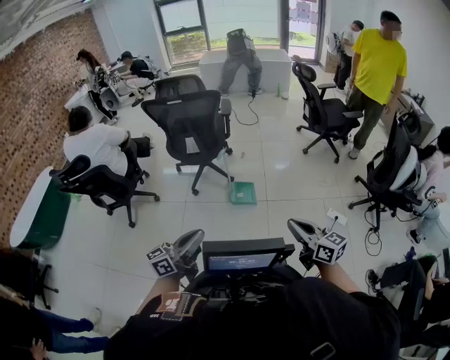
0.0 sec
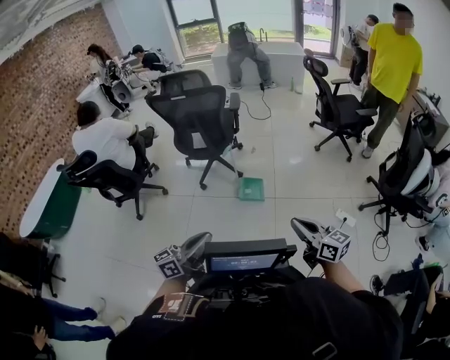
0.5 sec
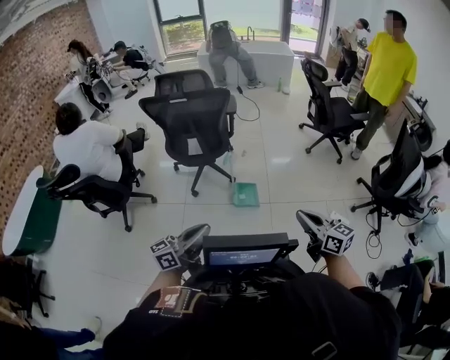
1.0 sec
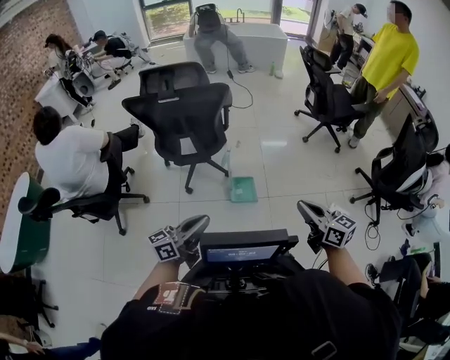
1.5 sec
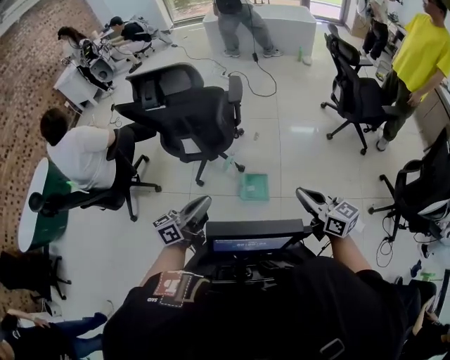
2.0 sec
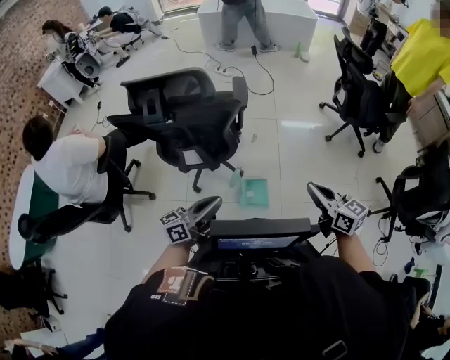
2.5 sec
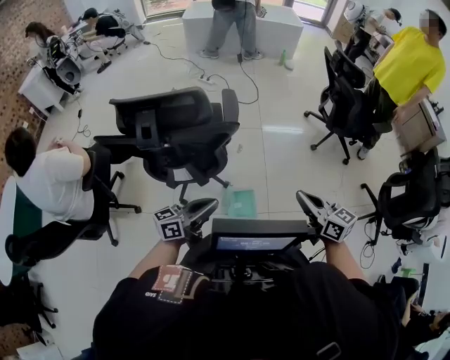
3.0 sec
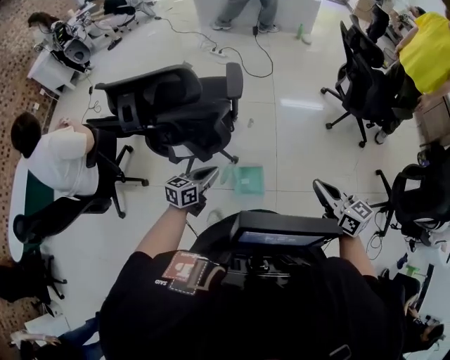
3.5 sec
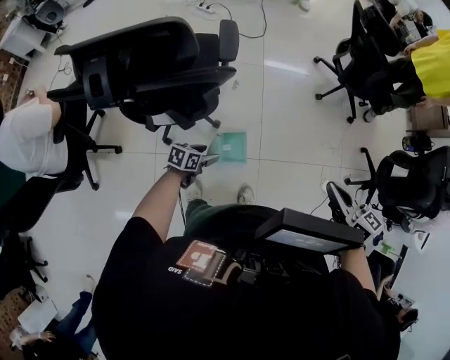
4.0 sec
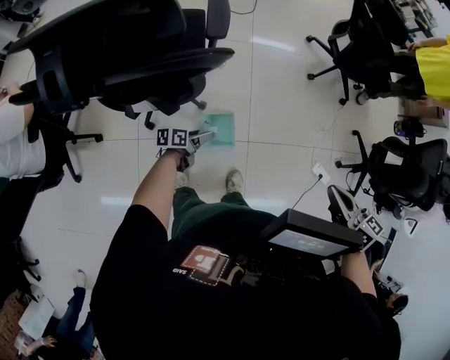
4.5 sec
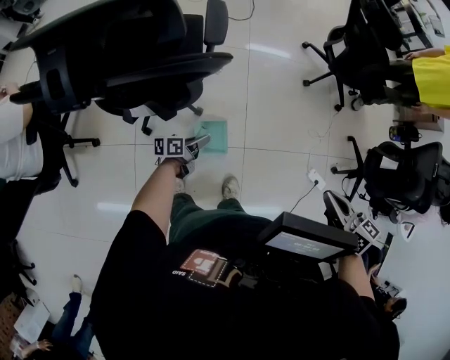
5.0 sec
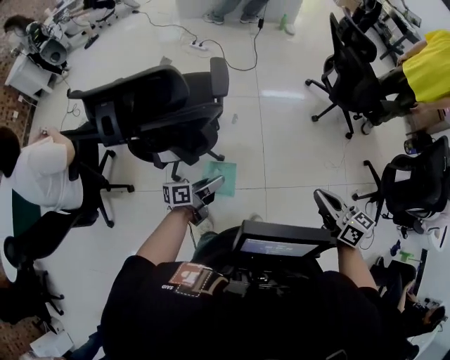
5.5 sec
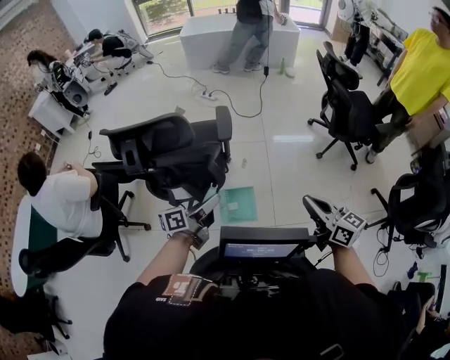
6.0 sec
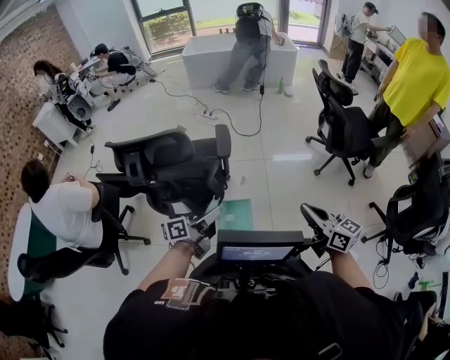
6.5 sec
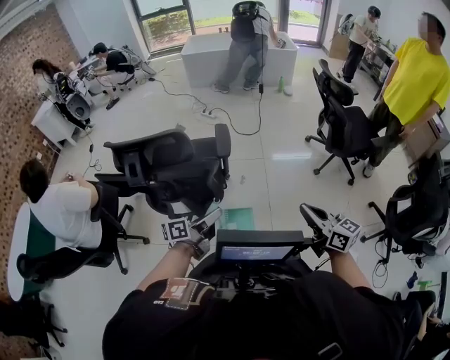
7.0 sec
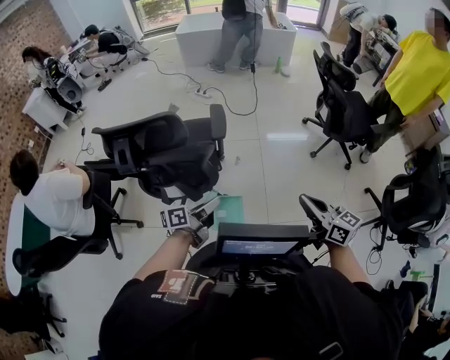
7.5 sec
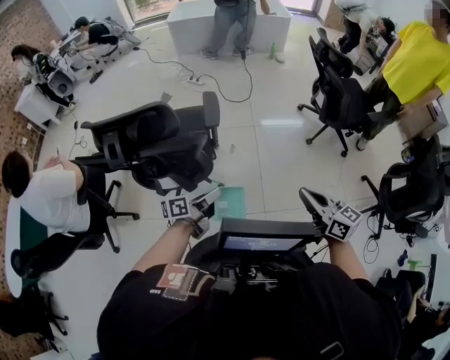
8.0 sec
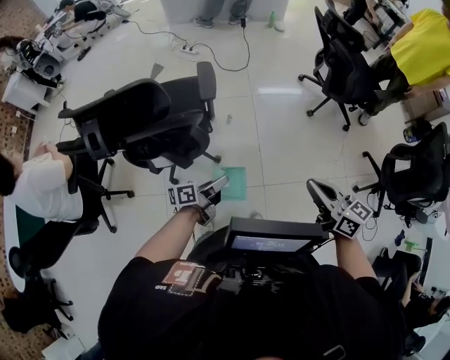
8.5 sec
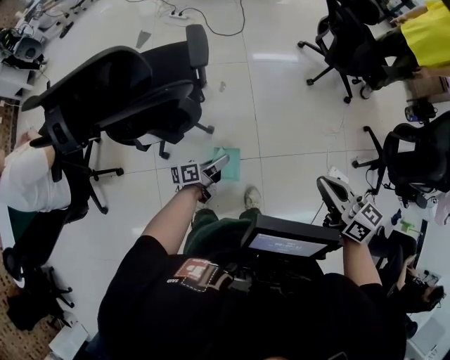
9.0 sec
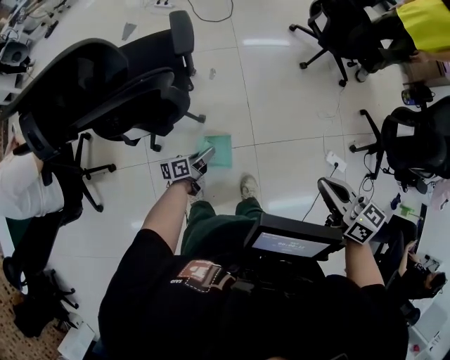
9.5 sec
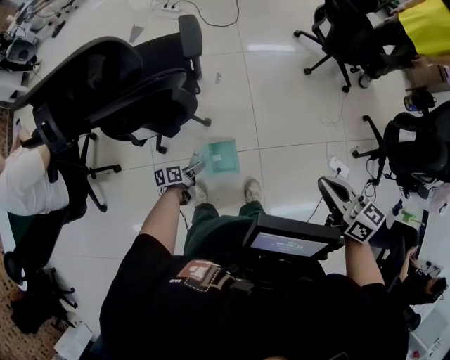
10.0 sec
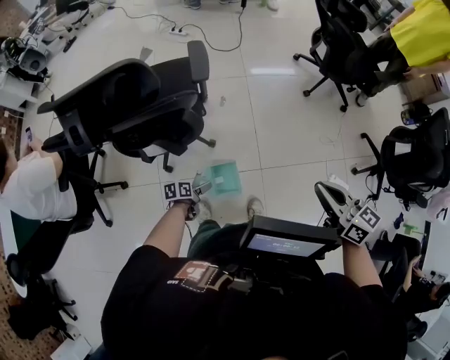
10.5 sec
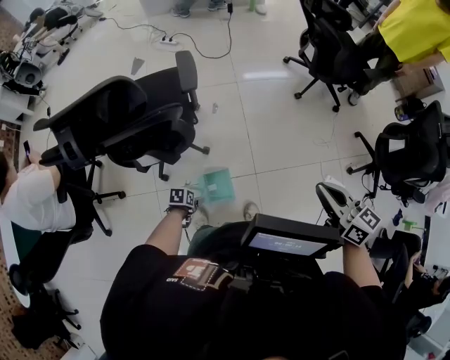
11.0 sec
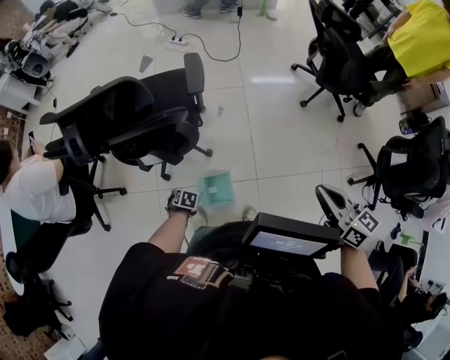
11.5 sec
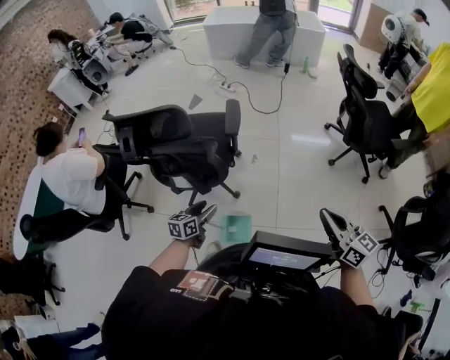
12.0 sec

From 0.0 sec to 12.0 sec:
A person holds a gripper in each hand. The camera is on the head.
From 0.0 sec to 2.0 sec: Both grippers are carried forward, approximately 60 cm.
From 2.0 sec to 4.0 sec: The right gripper goes approximately 30 cm forward, and turns by some 20 degrees, while the left gripper moves downward and forward, roughly 50 cm, points its fingers about 50 degrees further downward, and opens up.
From 4.0 sec to 6.0 sec: The left gripper is displaced upward by about 35 cm, points its fingers approximately 40 degrees further upward, and closes up. Meanwhile the right gripper goes some 10 cm upward.
From 6.0 sec to 8.0 sec: The left gripper shifts approximately 5 cm downward.
From 8.0 sec to 10.0 sec: The right gripper goes some 15 cm downward; the left gripper goes roughly 40 cm downward, and turns by some 30 degrees.
From 10.0 sec to 12.0 sec: The right gripper is displaced upward by some 15 cm. The left gripper is displaced upward by approximately 30 cm, and swivels approximately 40 degrees.

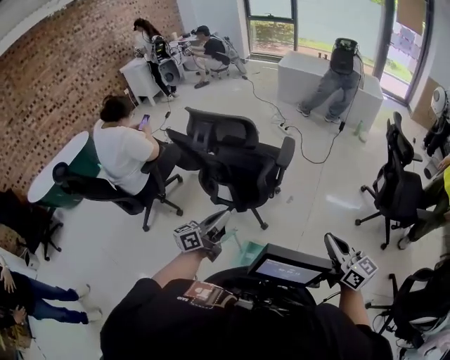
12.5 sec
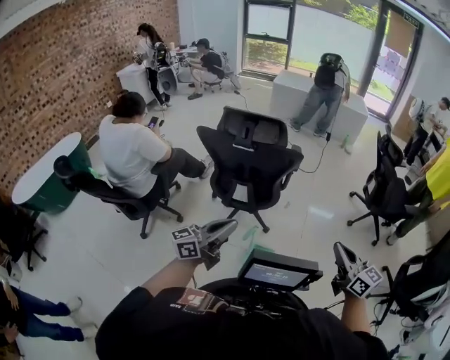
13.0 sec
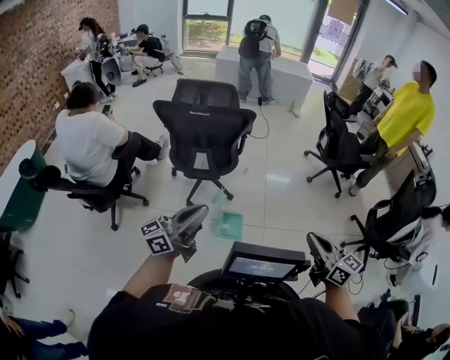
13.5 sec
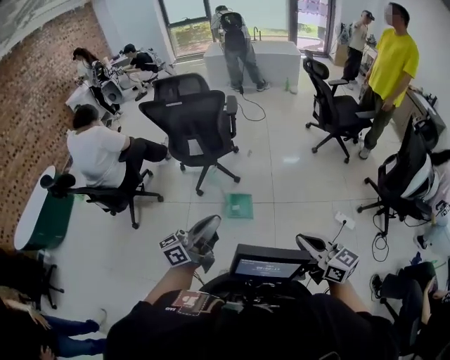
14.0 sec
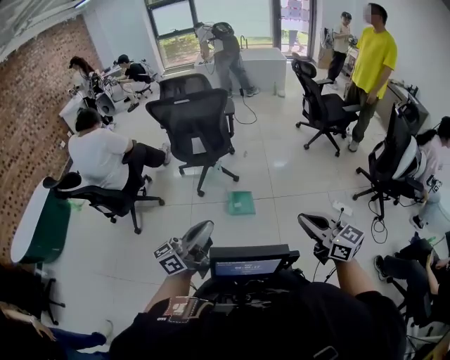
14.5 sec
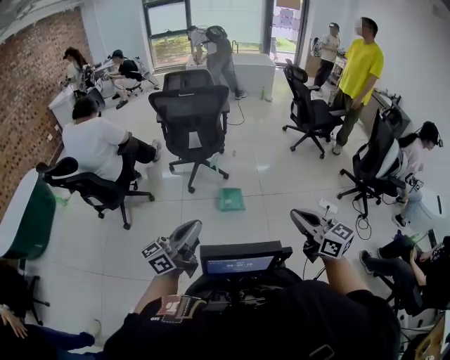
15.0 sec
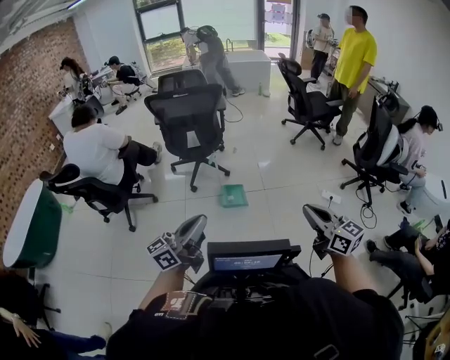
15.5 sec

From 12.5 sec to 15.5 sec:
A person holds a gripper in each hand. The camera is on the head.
From 12.5 sec to 14.0 sec: Both grippers are carried backward, about 70 cm. The left gripper swivels some 20 degrees.
From 14.0 sec to 15.5 sec: The grippers both shift backward and to the left by approximately 35 cm.

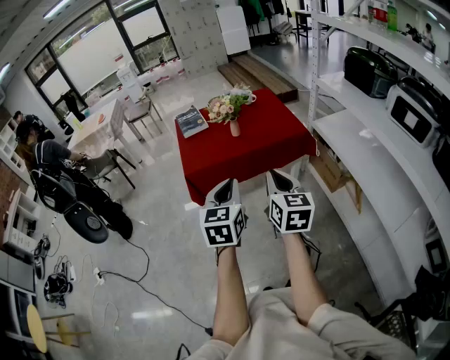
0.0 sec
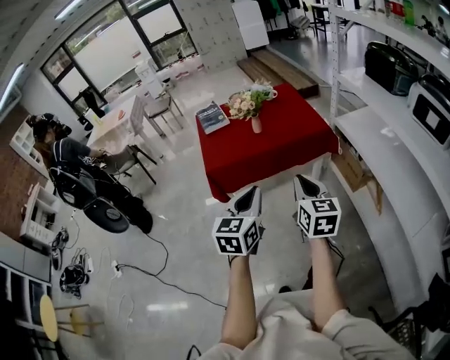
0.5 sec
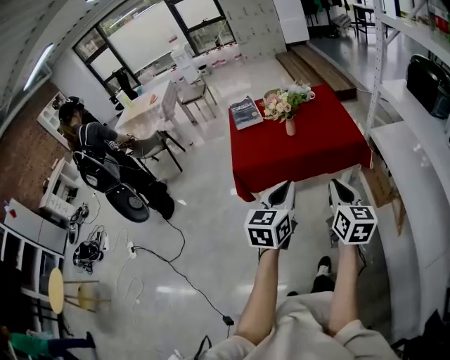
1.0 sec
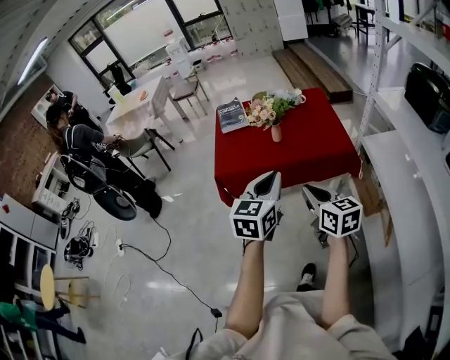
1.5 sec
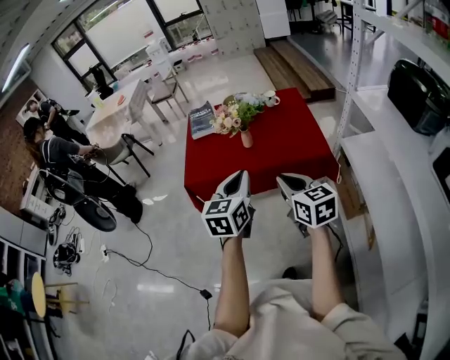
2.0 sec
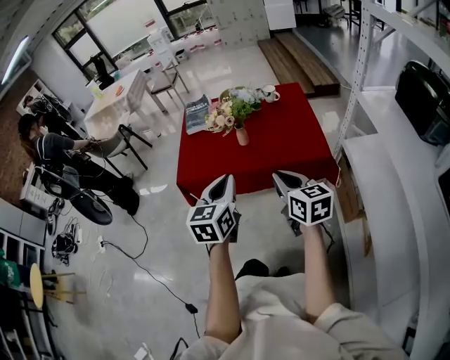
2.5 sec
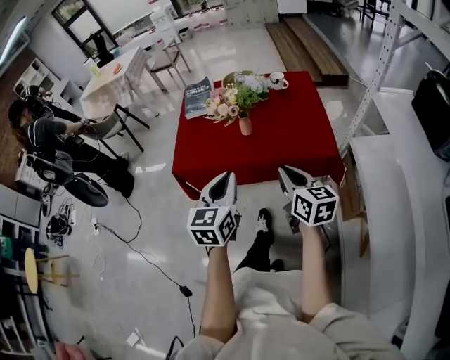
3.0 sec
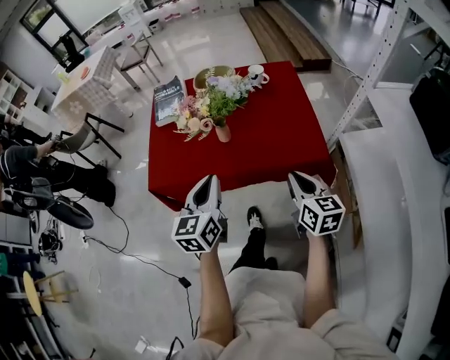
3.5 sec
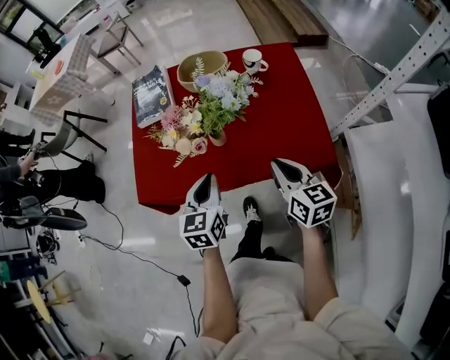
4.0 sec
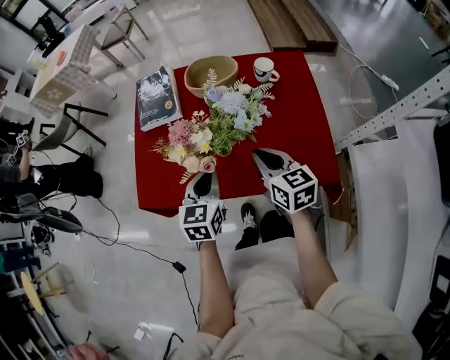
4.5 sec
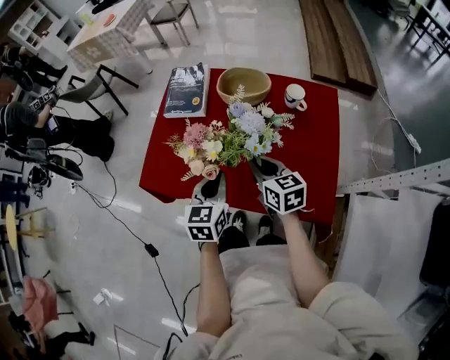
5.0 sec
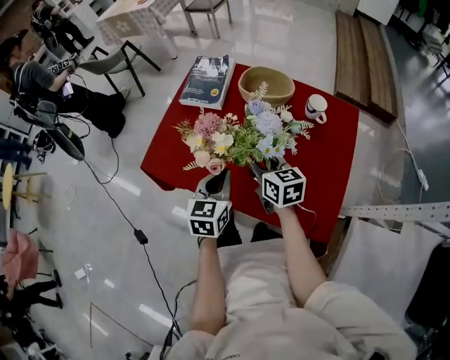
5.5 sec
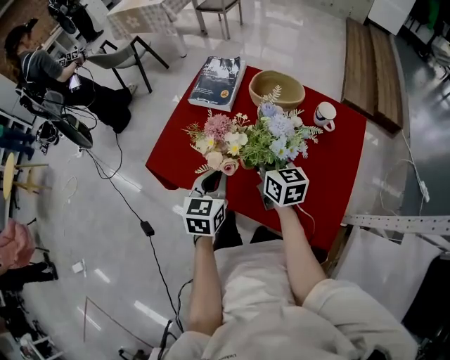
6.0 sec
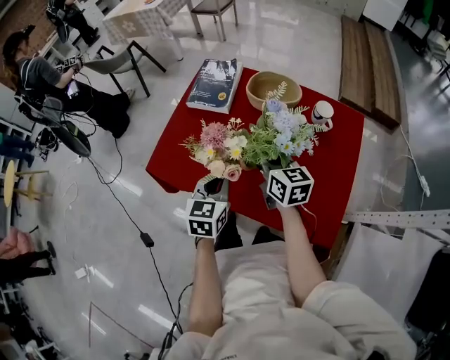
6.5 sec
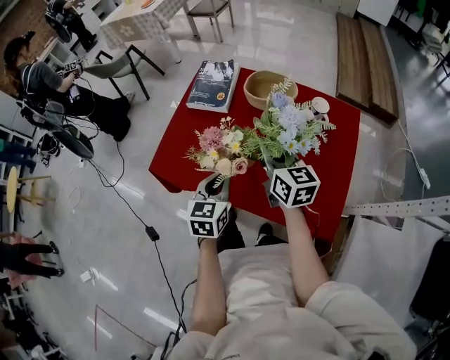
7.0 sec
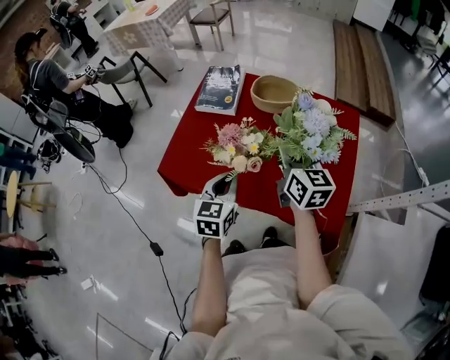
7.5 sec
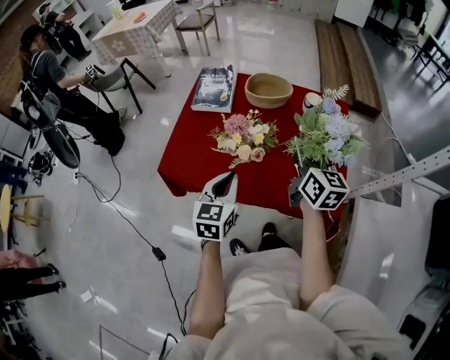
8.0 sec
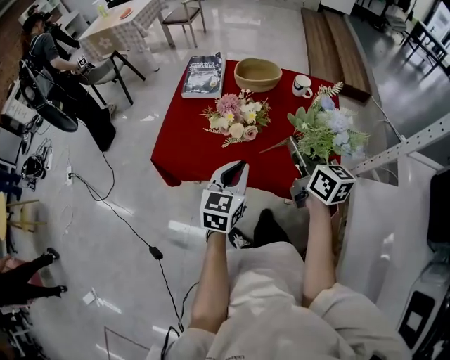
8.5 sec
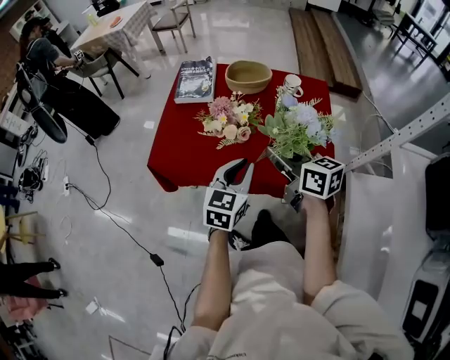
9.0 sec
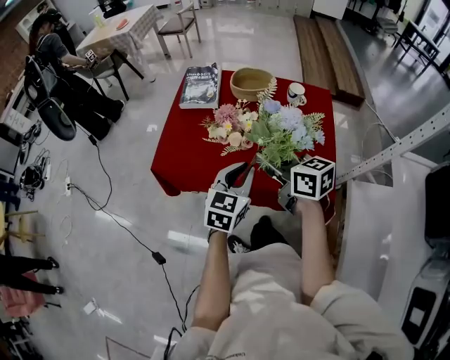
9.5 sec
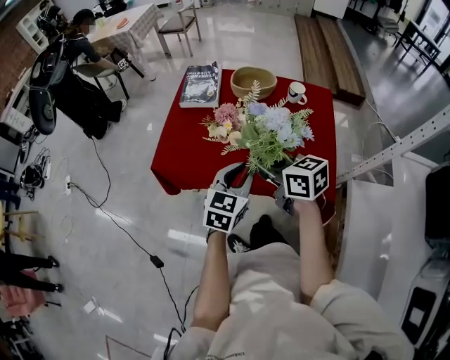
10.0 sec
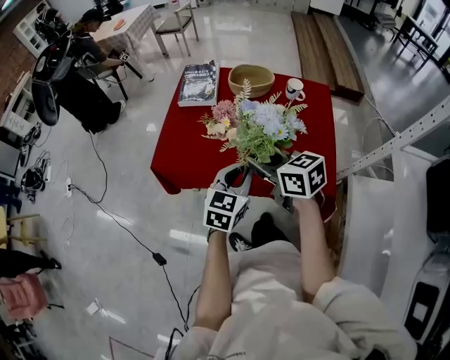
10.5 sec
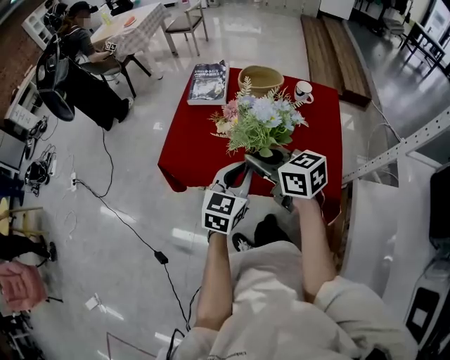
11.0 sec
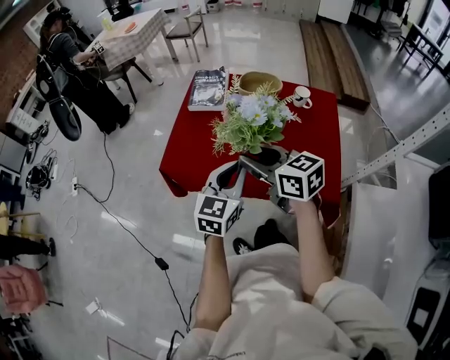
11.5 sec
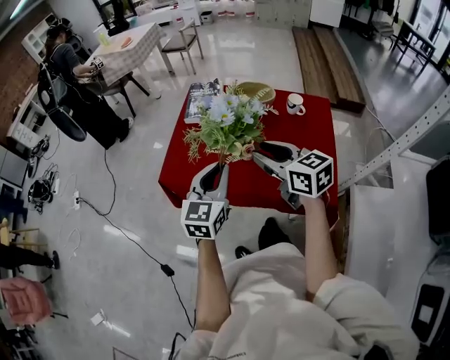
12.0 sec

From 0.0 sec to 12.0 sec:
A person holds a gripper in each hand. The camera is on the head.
From 0.0 sec to 2.0 sec: The grippers both shift forward and to the right by approximately 25 cm. The right gripper changes its angle by about 30 degrees.
From 2.0 sec to 4.0 sec: The grippers both shift forward and downward by approximately 30 cm.
From 4.0 sec to 6.0 sec: The right gripper is displaced forward by some 20 cm, and swivels some 30 degrees, while the left gripper shifts about 5 cm forward.
From 6.0 sec to 8.0 sec: The right gripper heads upward, backward and to the right, covering roughly 20 cm, and swivels some 30 degrees, while the left gripper heads backward and upward, covering approximately 10 cm.
From 8.0 sec to 10.0 sec: The right gripper heads to the left and backward, covering roughly 15 cm, and rotates about 40 degrees. Meanwhile the left gripper moves to the right, some 5 cm.
From 10.0 sec to 12.0 sec: The right gripper shifts by about 5 cm, and opens up. Meanwhile the left gripper goes about 10 cm upward and to the left.
